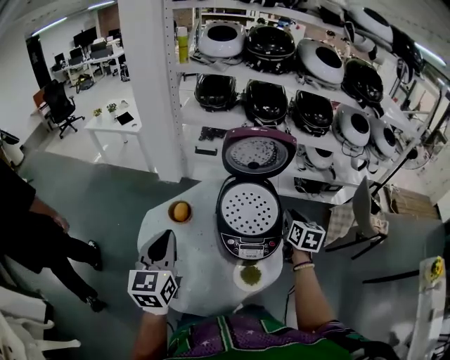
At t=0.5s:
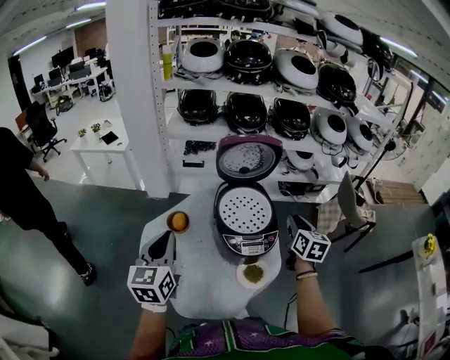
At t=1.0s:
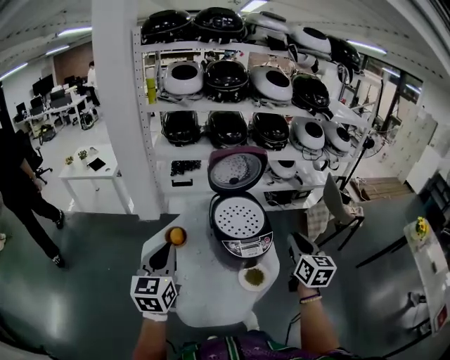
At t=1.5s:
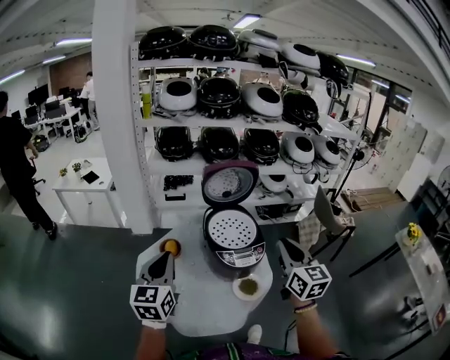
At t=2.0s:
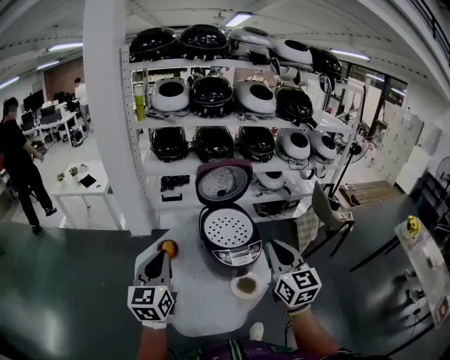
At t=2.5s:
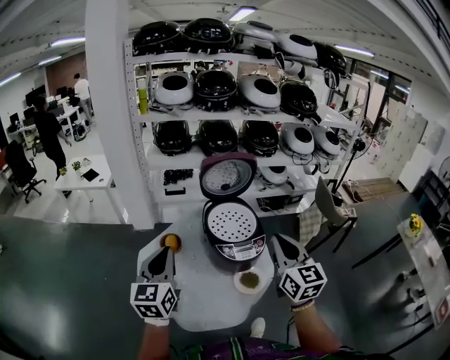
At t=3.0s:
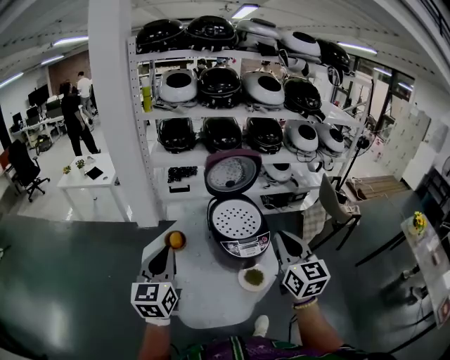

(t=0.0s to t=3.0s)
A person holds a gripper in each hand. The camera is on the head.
t=0.0s - t=1.5s: The right gripper travels backward and upward by roughly 30 cm, and turns by about 30 degrees. The left gripper travels backward by about 5 cm.
t=1.5s - t=3.0s: The grippers stay close to where they were, moving slightly.

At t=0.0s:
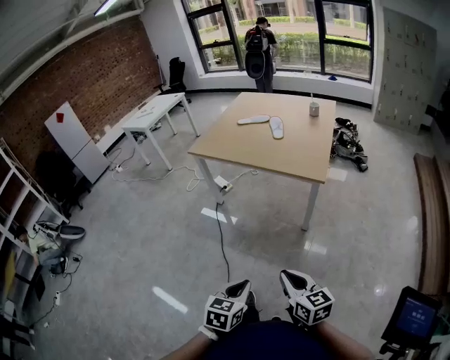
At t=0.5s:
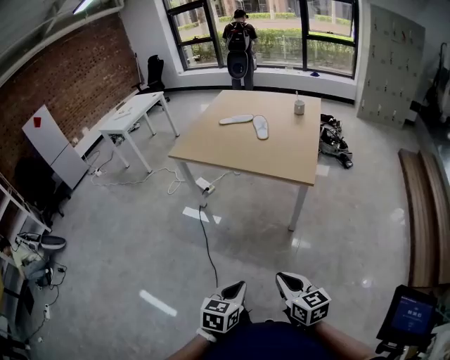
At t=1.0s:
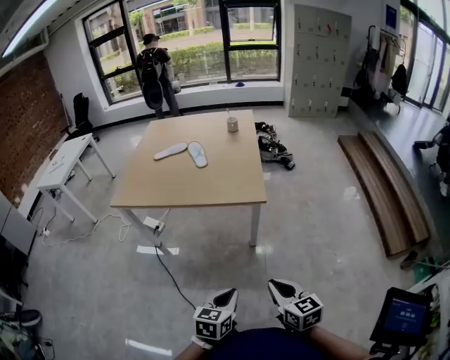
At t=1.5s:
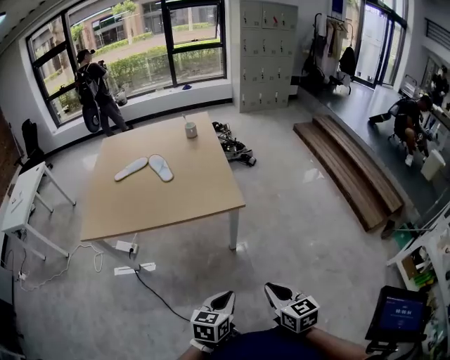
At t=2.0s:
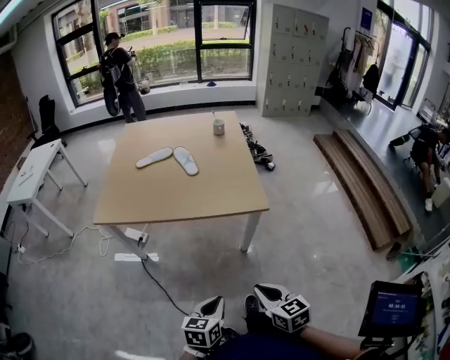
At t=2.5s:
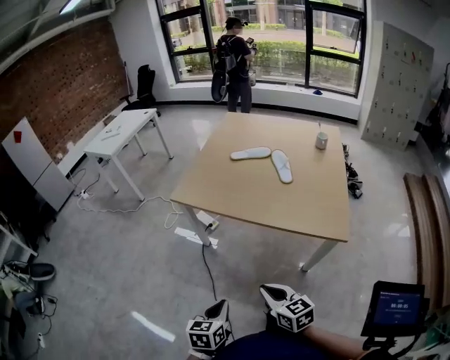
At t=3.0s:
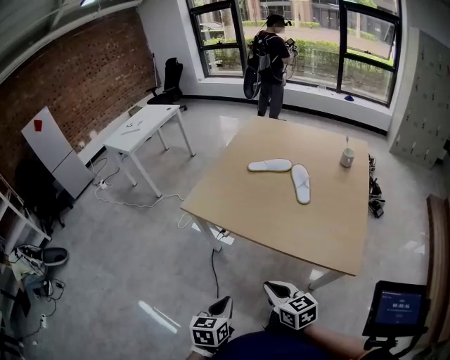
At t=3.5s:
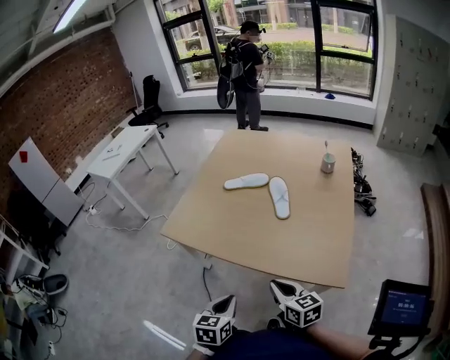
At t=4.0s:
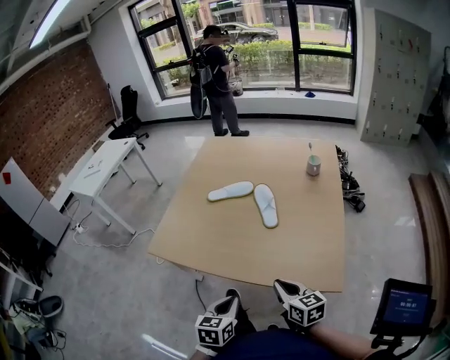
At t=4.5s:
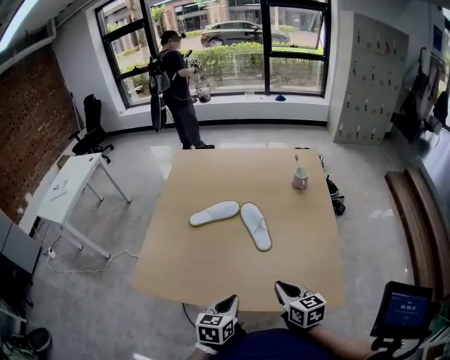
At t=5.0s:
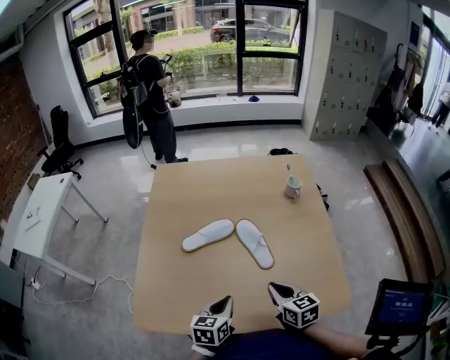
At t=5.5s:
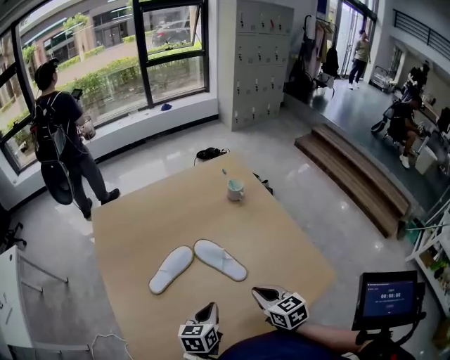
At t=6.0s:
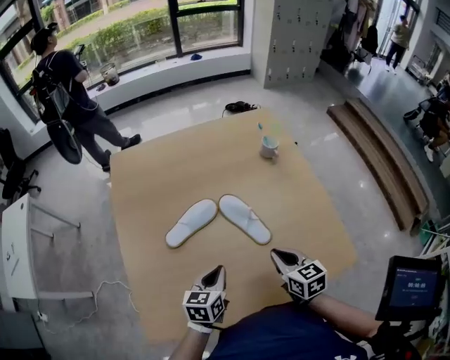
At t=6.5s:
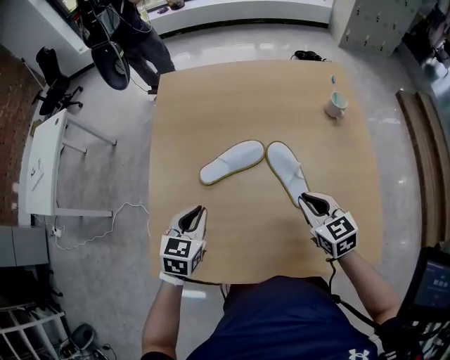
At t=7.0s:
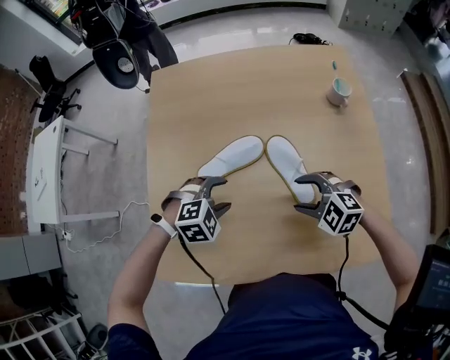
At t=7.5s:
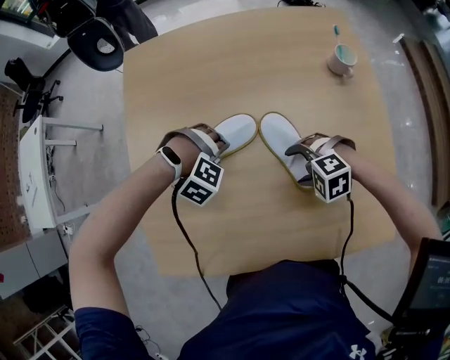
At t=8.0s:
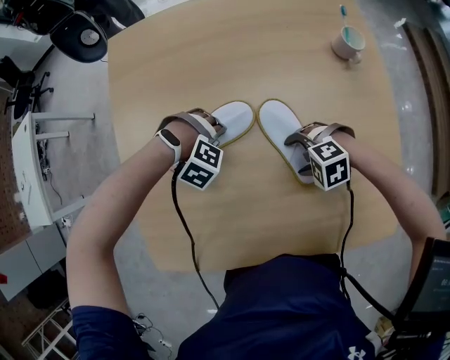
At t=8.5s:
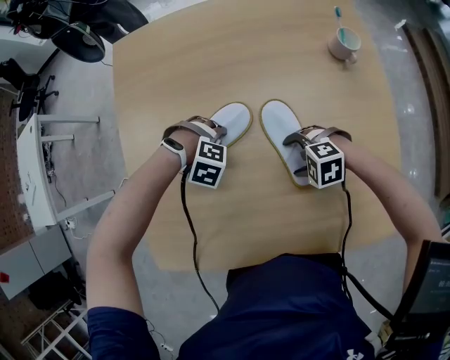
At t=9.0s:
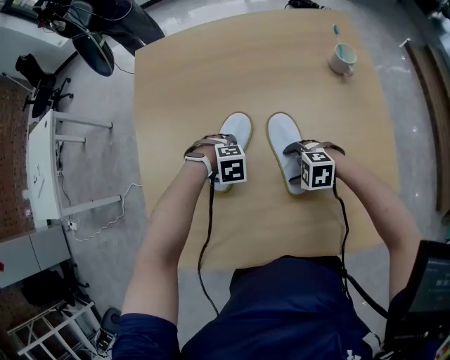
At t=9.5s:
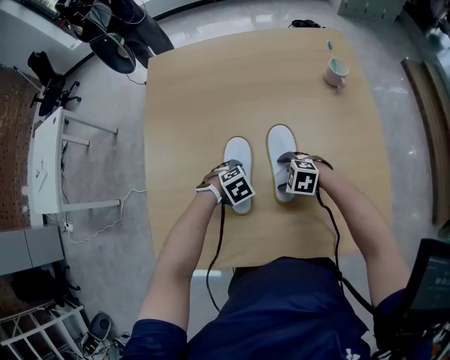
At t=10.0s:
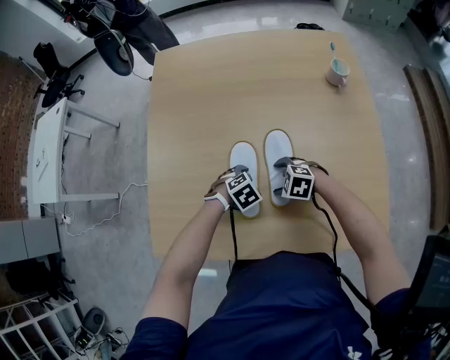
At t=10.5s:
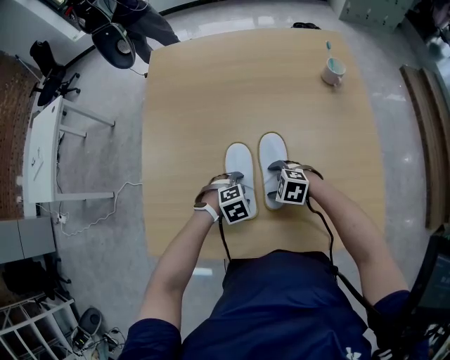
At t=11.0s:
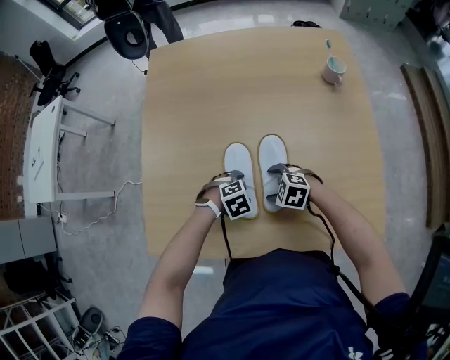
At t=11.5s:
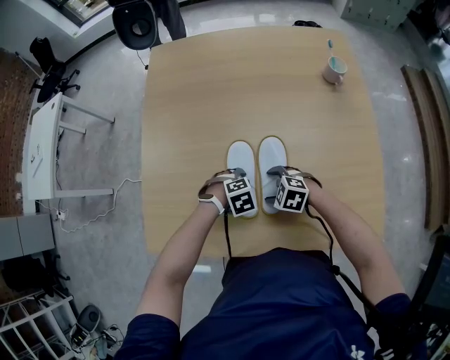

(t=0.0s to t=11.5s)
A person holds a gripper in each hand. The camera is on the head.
t=0.0s - t=2.0s: The left gripper ends up about 25 cm from where it was, and changes its angle by approximately 30 degrees; the right gripper ends up some 20 cm from where it was, and swivels roughly 30 degrees.
t=2.0s - t=4.0s: The right gripper moves about 35 cm; the left gripper changes place by some 30 cm, and turns by some 20 degrees.
t=4.0s - t=6.0s: The left gripper ends up roughly 30 cm from where it was, and turns by approximately 30 degrees. Meanwhile the right gripper shifts by some 20 cm, and rotates about 30 degrees.
t=6.0s - t=7.5s: The left gripper ends up approximately 20 cm from where it was, rotates around the line of its fingers by approximately 110 degrees, clockwise from behind, and opens, while the right gripper goes roughly 15 cm downward, rotates around the line of its fingers by roughly 80 degrees, counterclockwise from behind, and opens.
t=7.5s - t=9.5s: The left gripper ends up roughly 15 cm from where it was, and twists about 70 degrees counterclockwise, seen from behind, while the right gripper ends up some 5 cm from where it was, and rotates approximately 20 degrees.
t=9.5s - t=11.5s: The left gripper ends up approximately 5 cm from where it was; the right gripper moves approximately 5 cm.

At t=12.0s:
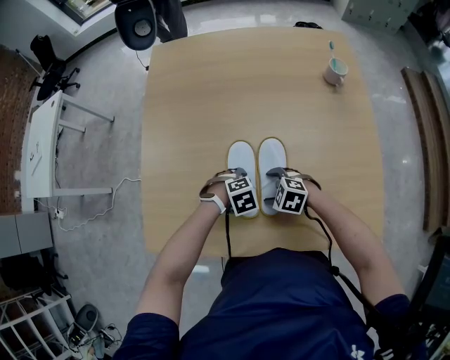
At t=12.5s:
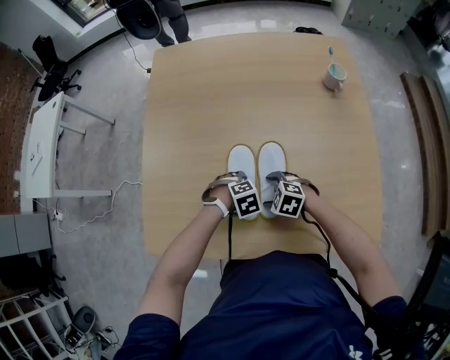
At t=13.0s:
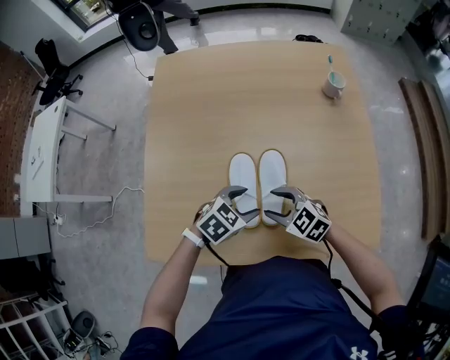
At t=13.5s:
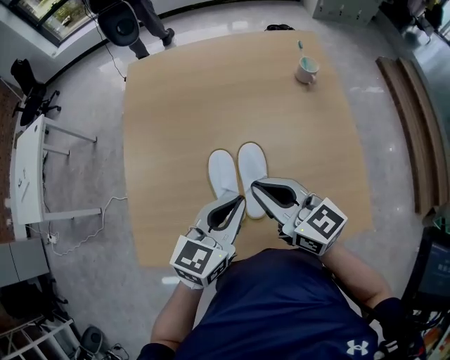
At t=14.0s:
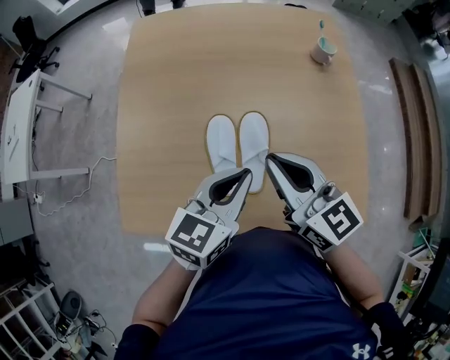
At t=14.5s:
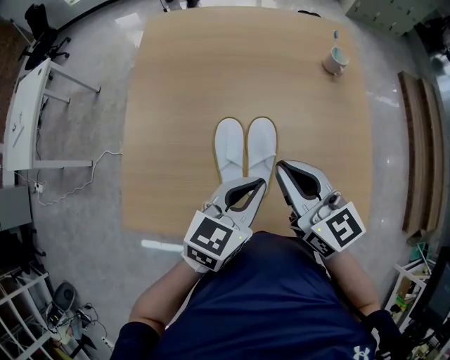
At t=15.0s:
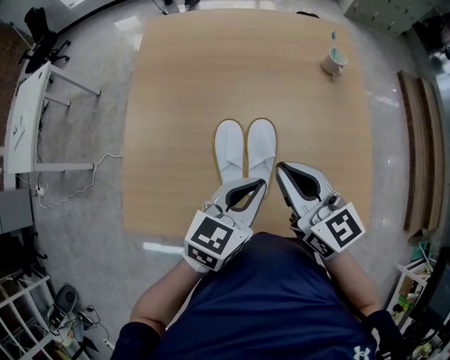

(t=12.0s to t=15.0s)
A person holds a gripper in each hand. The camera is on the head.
t=12.0s - t=13.5s: The two grippers go roughly 30 cm upward. The left gripper points its fingers about 60 degrees further upward, and closes its fingers. The right gripper tips its fingers upward by approximately 50 degrees, and closes up.
t=13.5s - t=15.0s: The grippers make only small movements.

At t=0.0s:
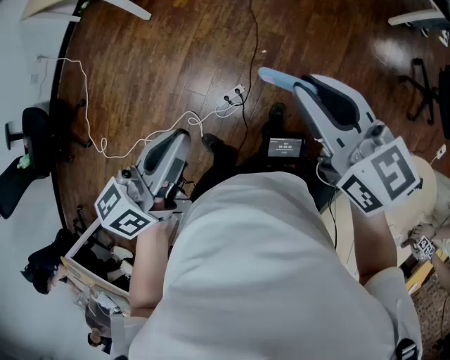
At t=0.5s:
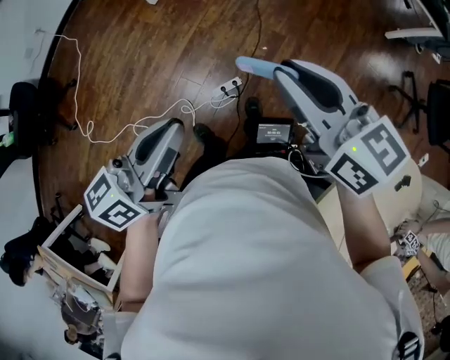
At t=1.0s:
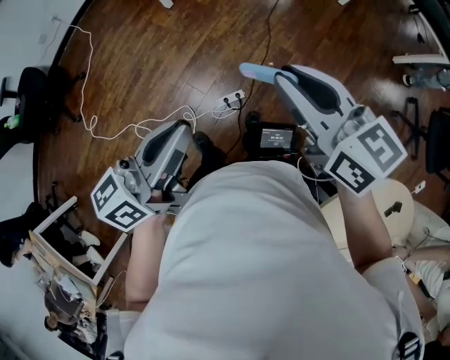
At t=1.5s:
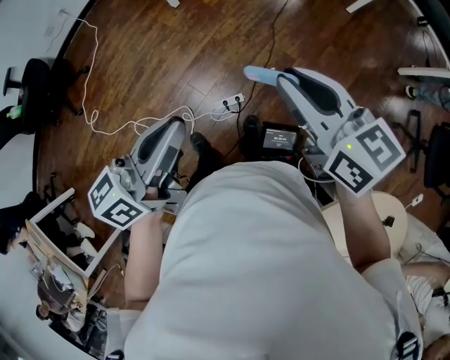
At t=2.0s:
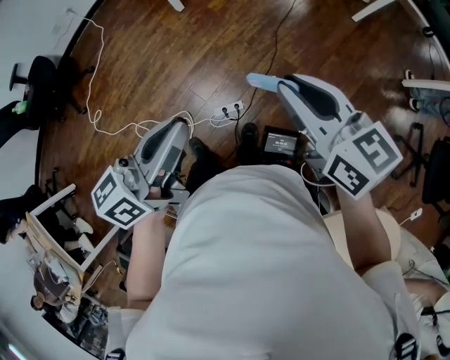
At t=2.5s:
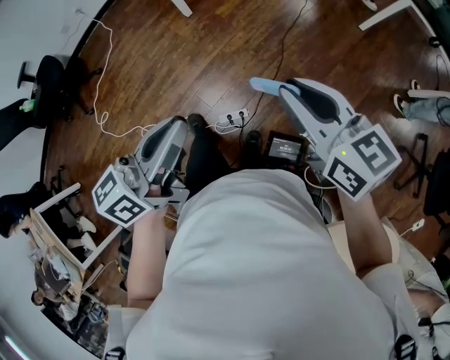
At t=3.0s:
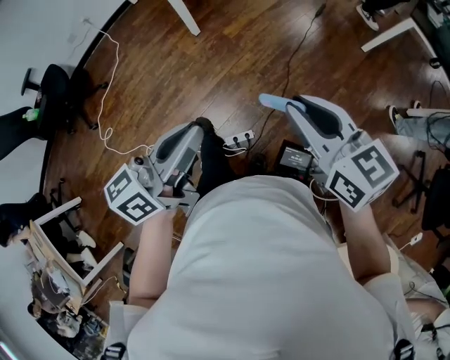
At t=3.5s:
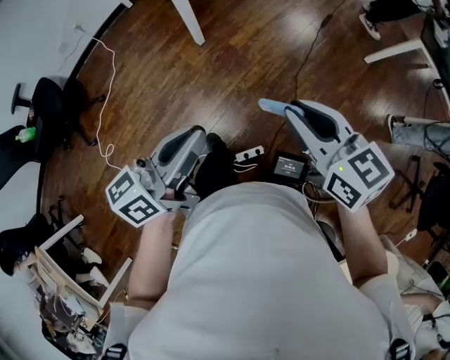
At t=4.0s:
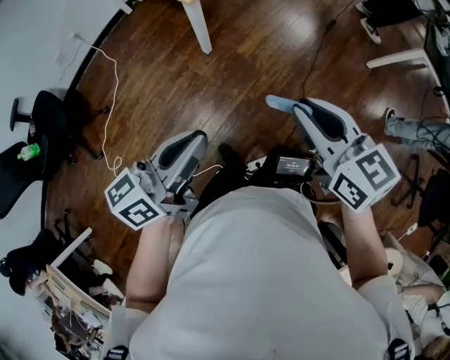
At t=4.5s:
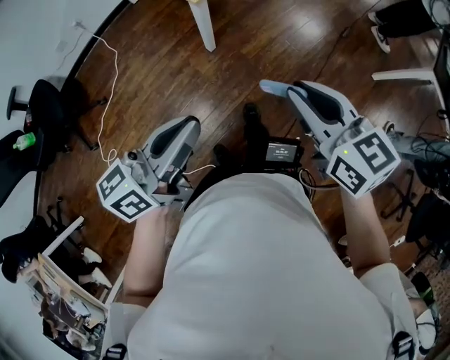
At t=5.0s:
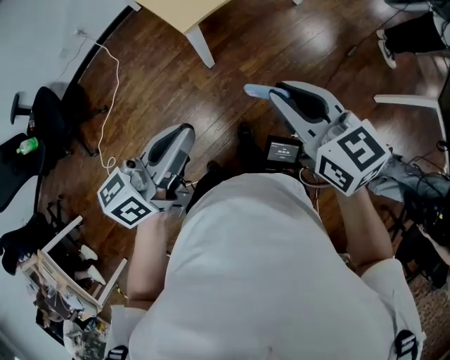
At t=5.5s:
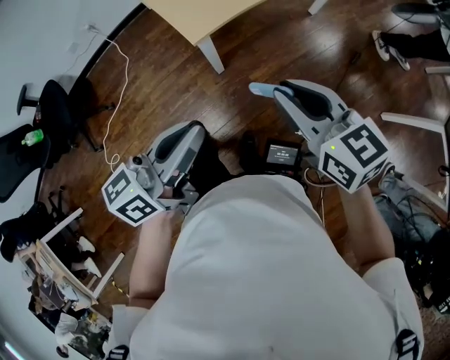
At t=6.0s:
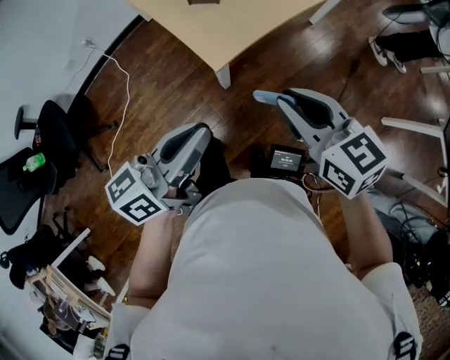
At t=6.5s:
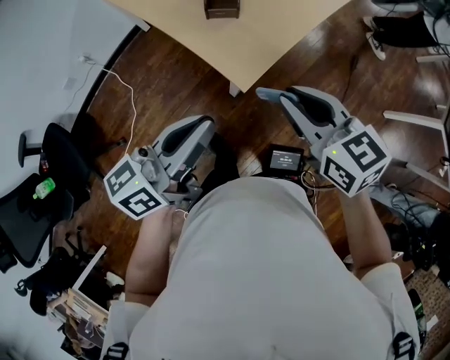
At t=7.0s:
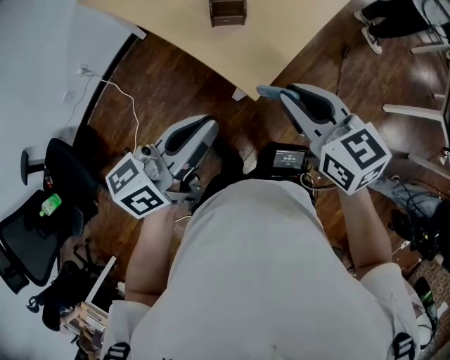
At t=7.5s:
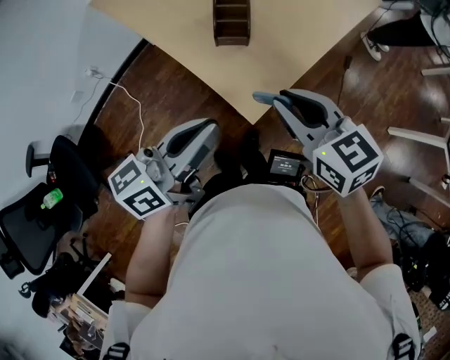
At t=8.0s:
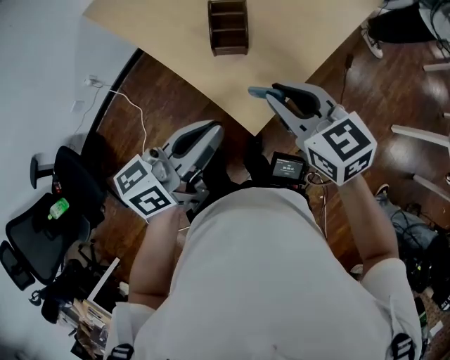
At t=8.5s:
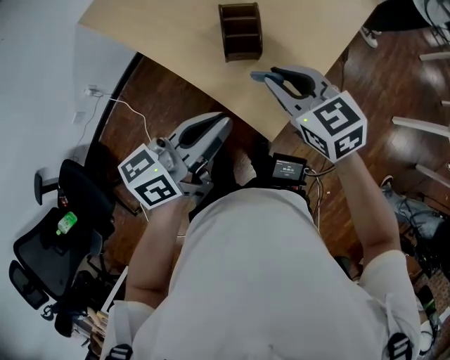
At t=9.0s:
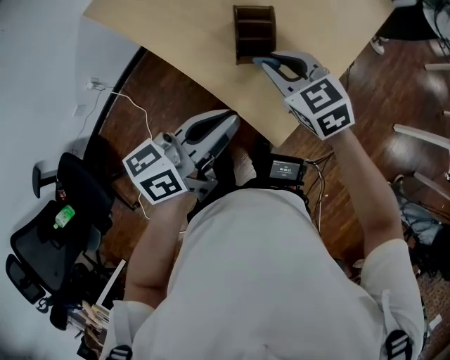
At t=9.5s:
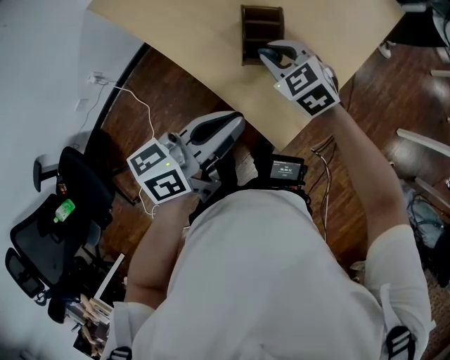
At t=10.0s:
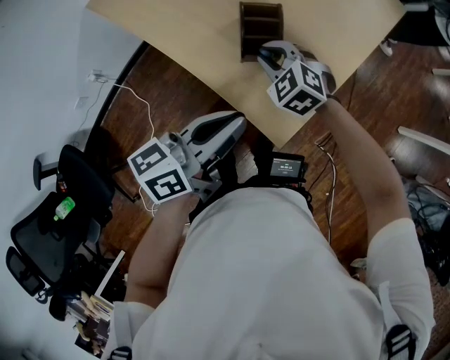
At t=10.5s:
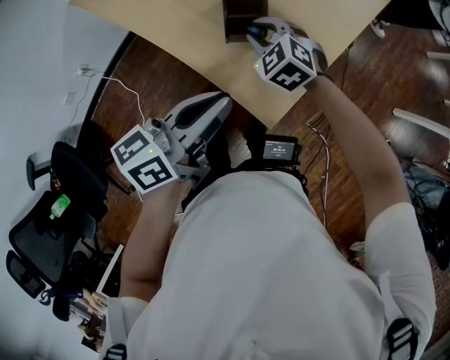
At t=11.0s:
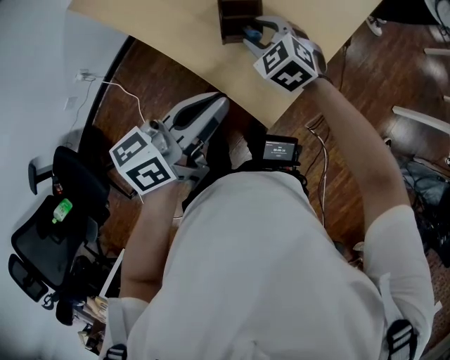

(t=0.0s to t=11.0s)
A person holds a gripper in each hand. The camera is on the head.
t=0.0s - t=2.0s: The left gripper reaches about 5 cm to the left, then returns. Meanwhile the right gripper travels forward by about 5 cm, and moves some 10 cm to the left and comes back.
t=2.0s - t=3.5s: The two grippers go about 25 cm forward and to the left.
t=3.5s - t=5.5s: The two grippers go about 35 cm forward.
t=5.5s - t=7.5s: Both grippers travel together forward and to the left, approximately 35 cm.
t=7.5s - t=9.0s: The right gripper shifts about 15 cm forward. Meanwhile the left gripper travels forward by some 10 cm.
t=9.0s - t=11.0s: The right gripper moves downward, roughly 5 cm, rotates some 20 degrees, and opens.
